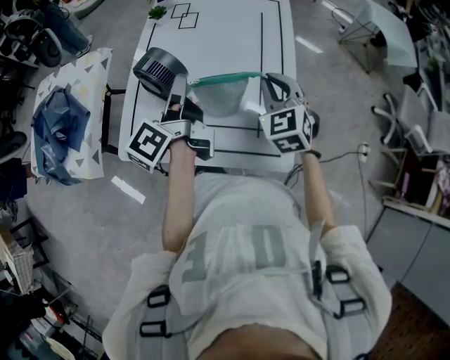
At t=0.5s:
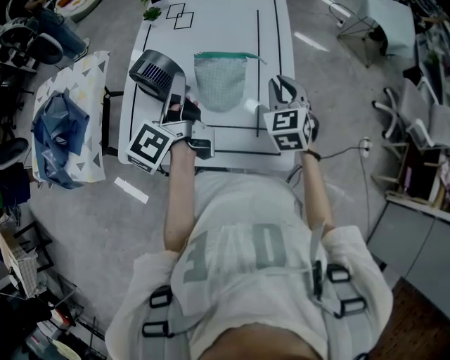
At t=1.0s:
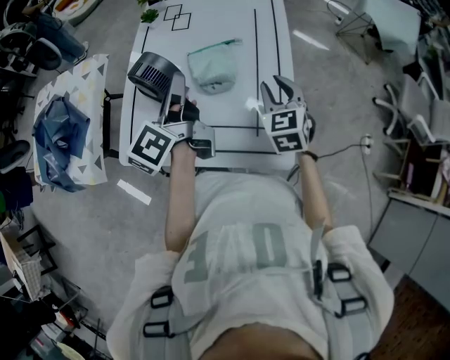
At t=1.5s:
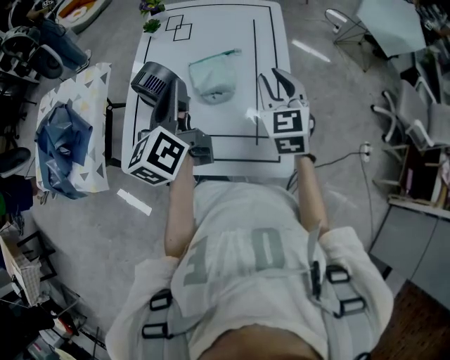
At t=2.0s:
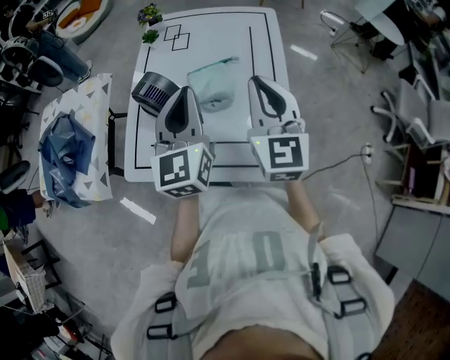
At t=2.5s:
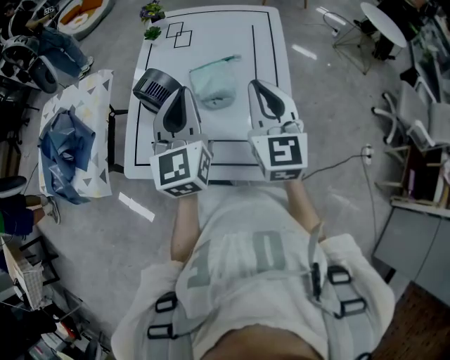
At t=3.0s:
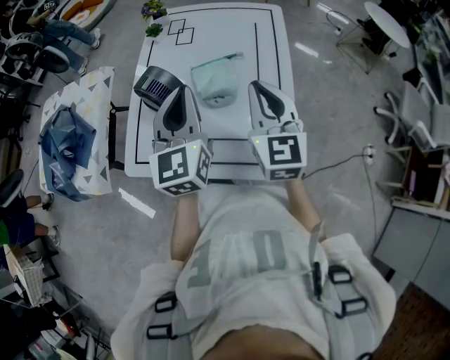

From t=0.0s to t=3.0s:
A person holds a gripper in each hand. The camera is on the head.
From t=0.0s to t=1.5s: The left gripper turns by about 30 degrees.
From t=1.5s to t=3.0s: The left gripper rotates roughly 40 degrees, while the right gripper ends up approximately 5 cm from where it was.

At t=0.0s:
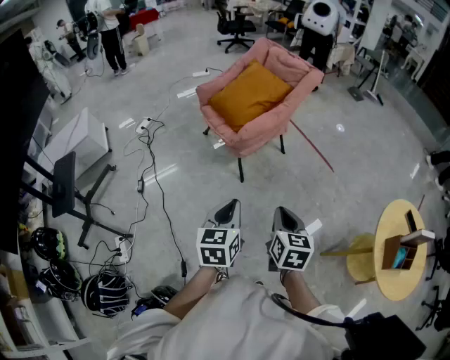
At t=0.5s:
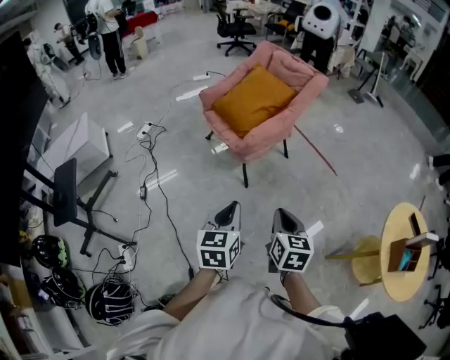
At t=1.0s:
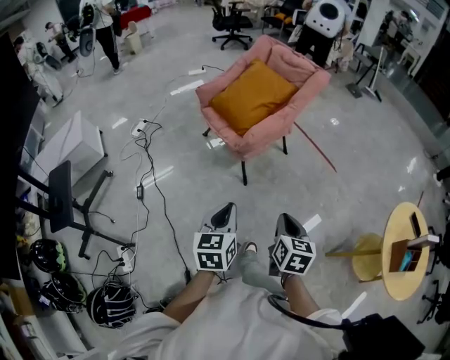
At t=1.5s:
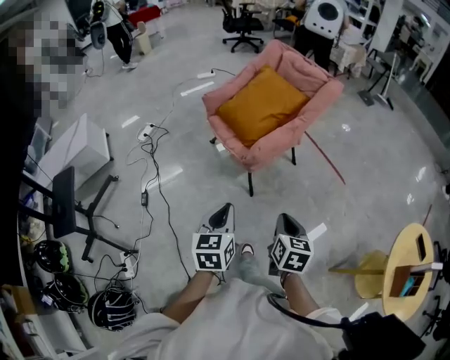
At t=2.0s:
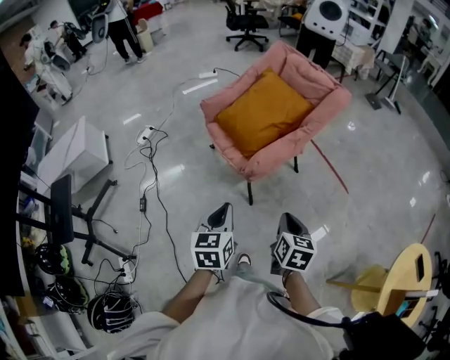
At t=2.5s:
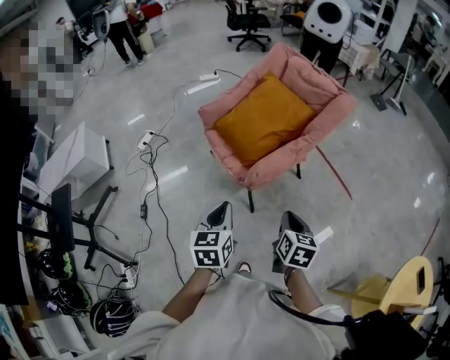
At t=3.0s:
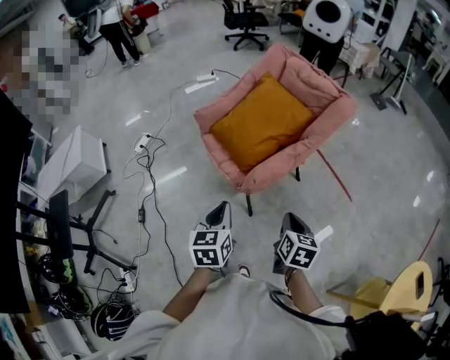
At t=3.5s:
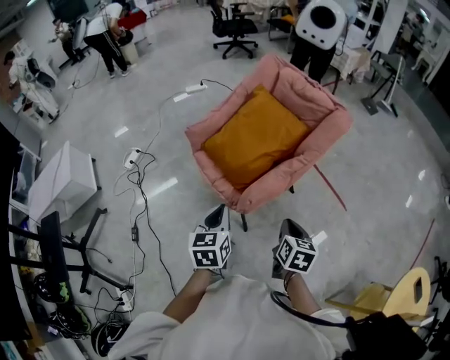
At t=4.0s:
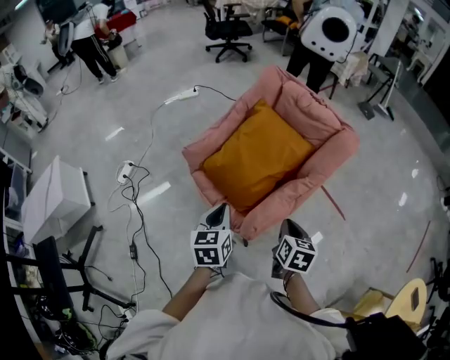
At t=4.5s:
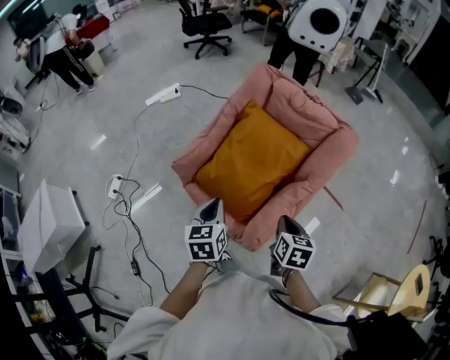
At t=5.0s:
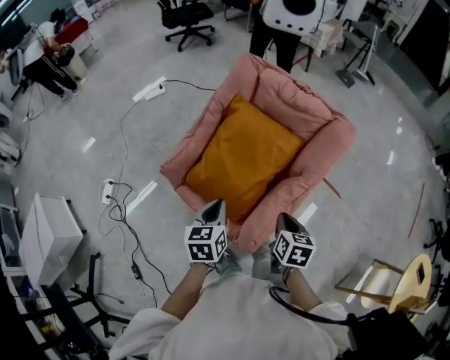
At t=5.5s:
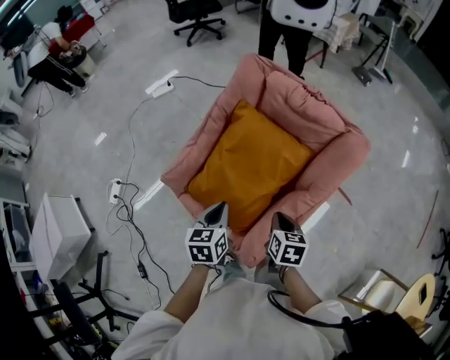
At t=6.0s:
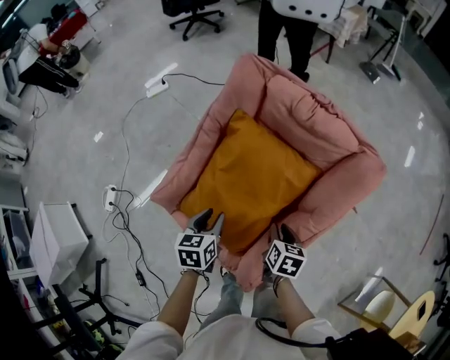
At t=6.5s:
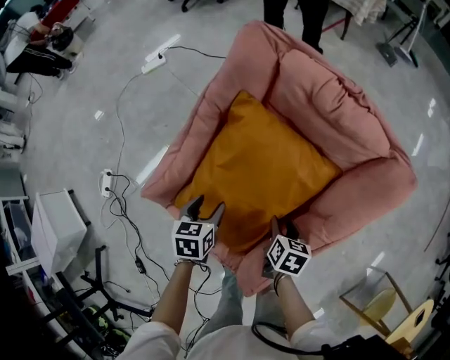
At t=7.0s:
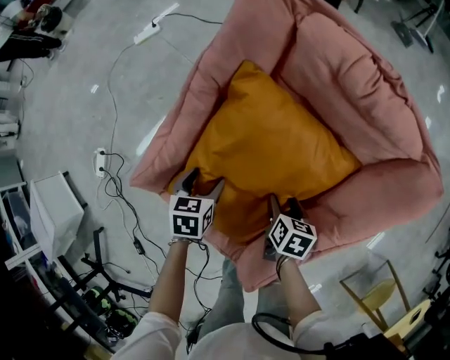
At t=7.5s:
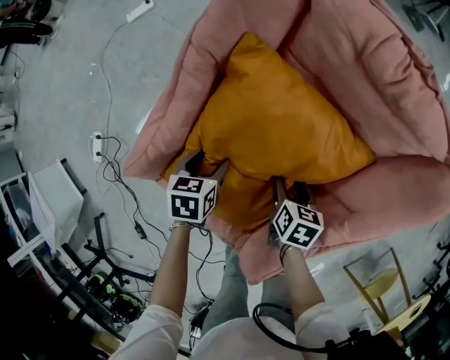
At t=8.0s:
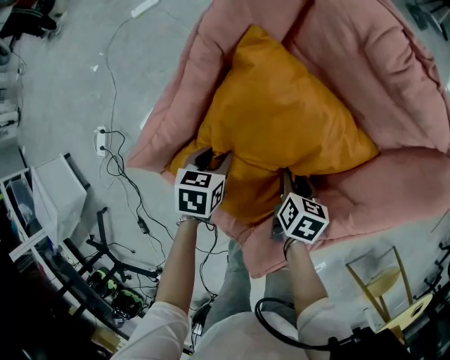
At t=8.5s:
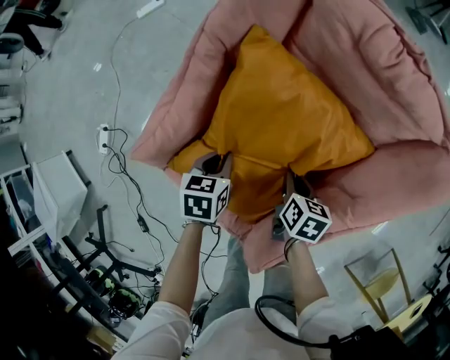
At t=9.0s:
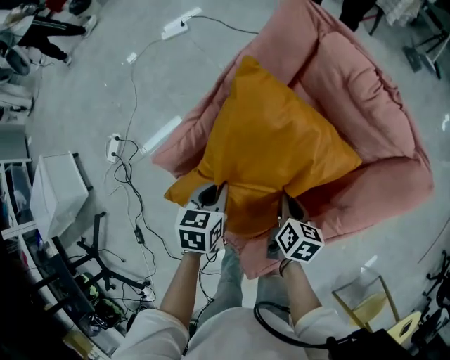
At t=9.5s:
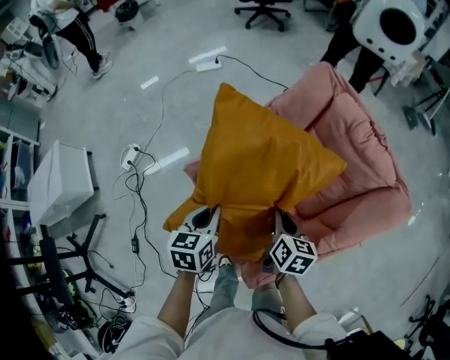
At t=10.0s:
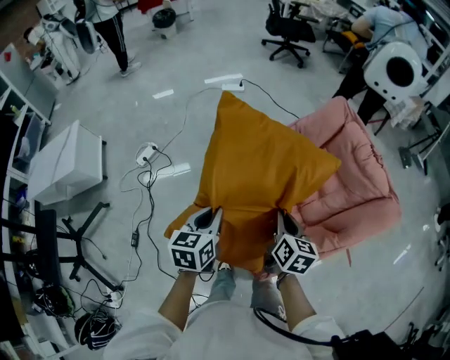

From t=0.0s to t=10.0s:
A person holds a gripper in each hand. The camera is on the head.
From t=0.0s to t=2.0s: Both grippers travel together forward, about 25 cm.
From t=2.0s to t=4.0s: The two grippers go roughly 30 cm forward.
From t=4.0s to t=6.0s: The two grippers go approximately 30 cm forward and downward. The left gripper changes its angle by about 20 degrees, and opens.
From t=6.0s to t=8.0s: Both grippers move downward and forward, roughly 20 cm. The right gripper opens, then closes once more. The left gripper opens, then closes again.
From t=8.0s to t=10.0s: The left gripper travels upward, backward and to the left by some 40 cm, points its fingers about 30 degrees further upward, and closes its fingers, while the right gripper shifts some 35 cm upward and to the left, rotates approximately 40 degrees, and closes up.

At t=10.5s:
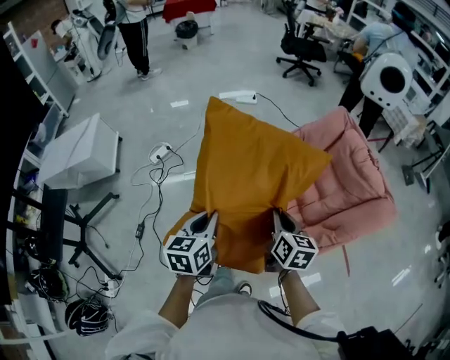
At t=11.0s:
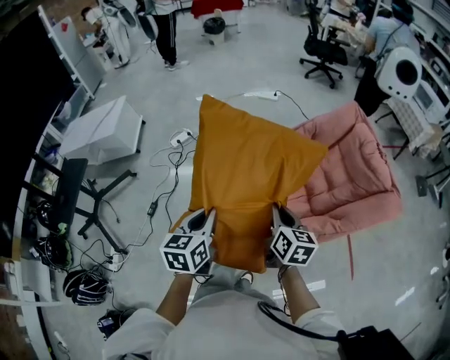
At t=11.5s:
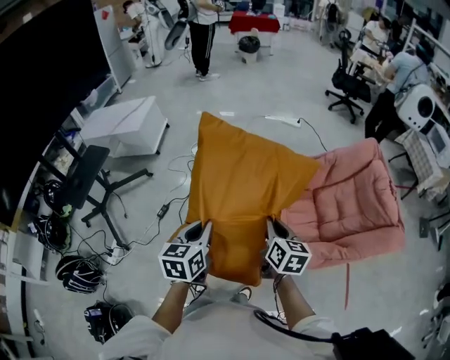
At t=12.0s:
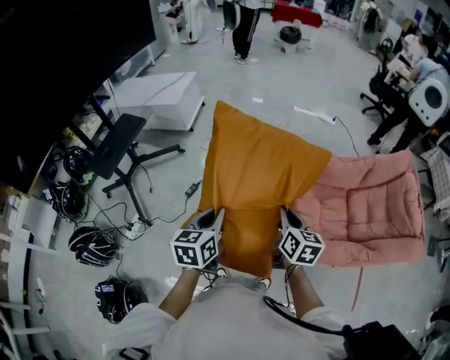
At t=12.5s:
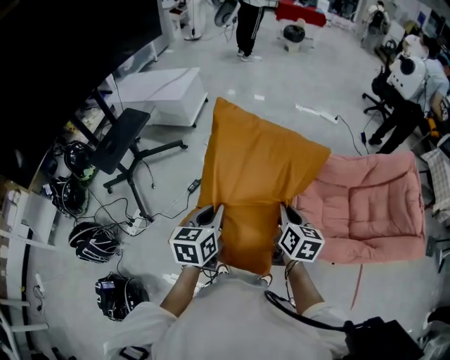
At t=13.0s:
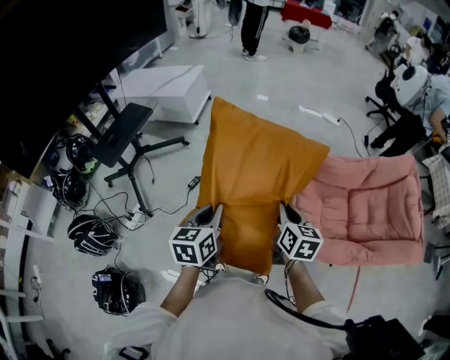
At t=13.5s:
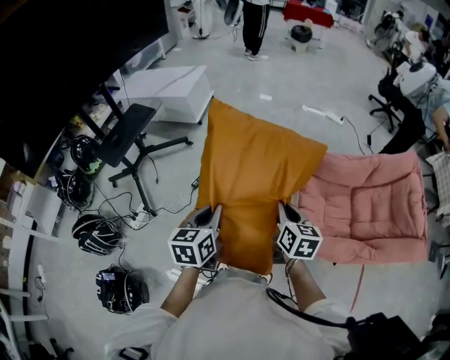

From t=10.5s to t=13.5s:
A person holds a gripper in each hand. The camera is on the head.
From t=10.5s to t=12.0s: The right gripper travels to the left by roughly 25 cm, and swivels about 30 degrees; the left gripper moves to the left and backward, roughly 30 cm, and changes its angle by some 30 degrees.
From t=12.0s to t=13.5s: The grippers stay close to where they were, moving slightly.

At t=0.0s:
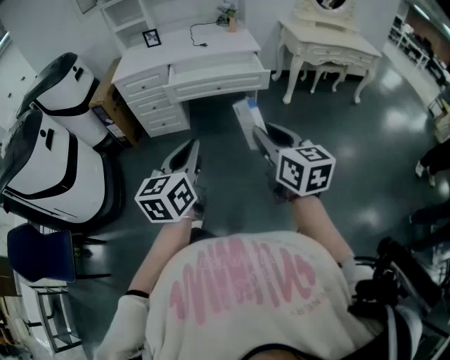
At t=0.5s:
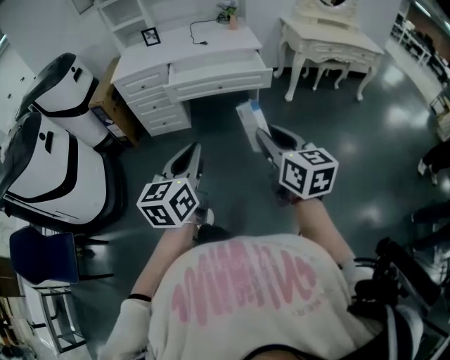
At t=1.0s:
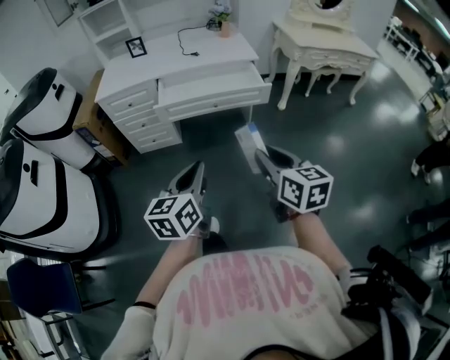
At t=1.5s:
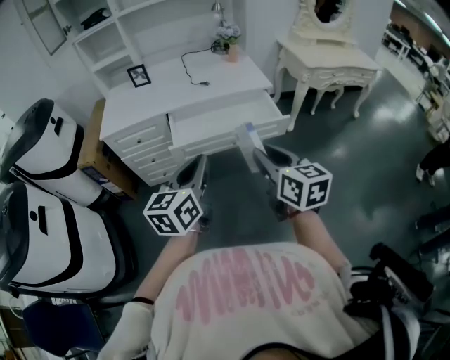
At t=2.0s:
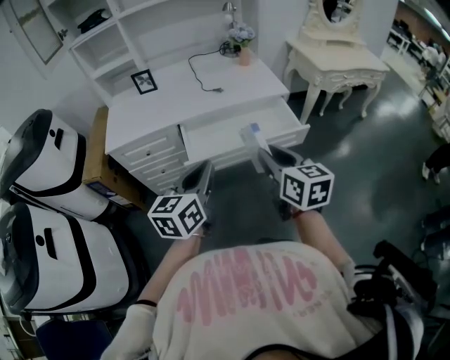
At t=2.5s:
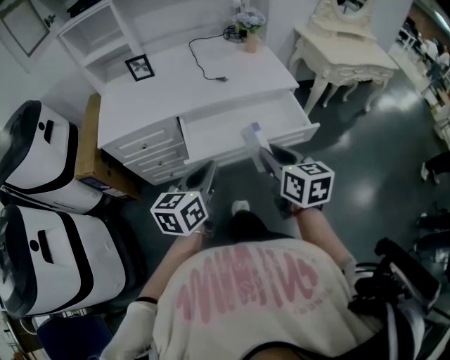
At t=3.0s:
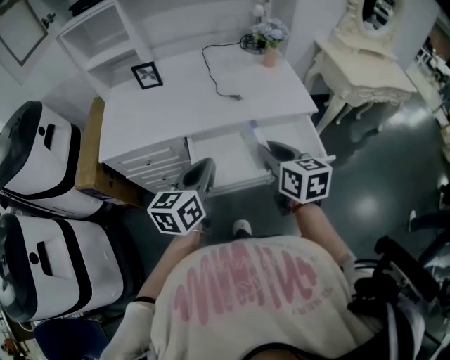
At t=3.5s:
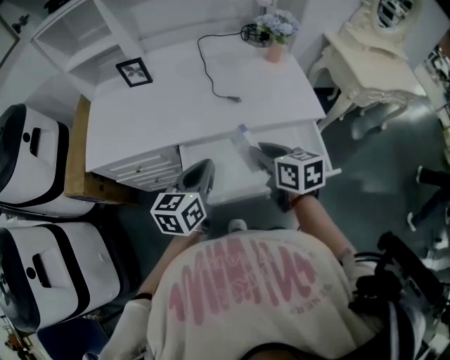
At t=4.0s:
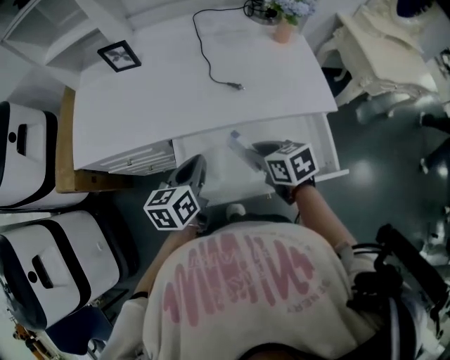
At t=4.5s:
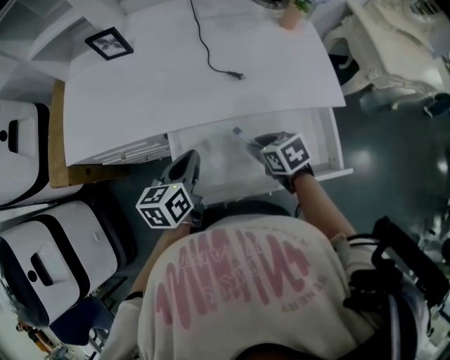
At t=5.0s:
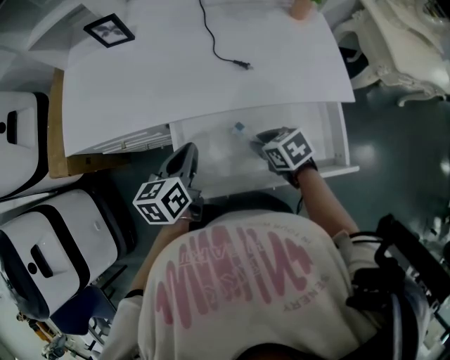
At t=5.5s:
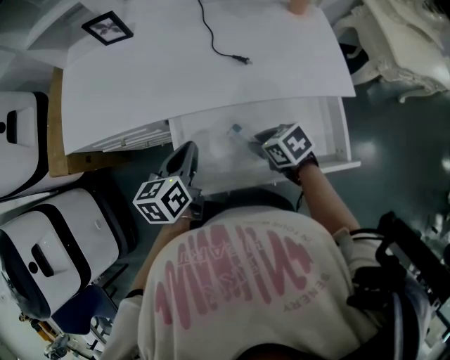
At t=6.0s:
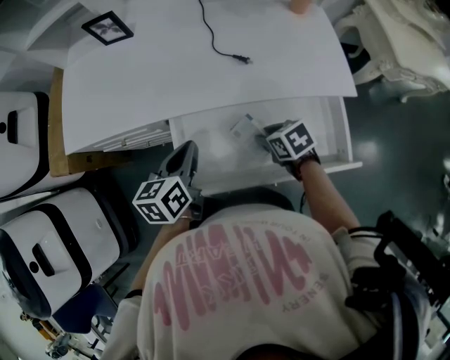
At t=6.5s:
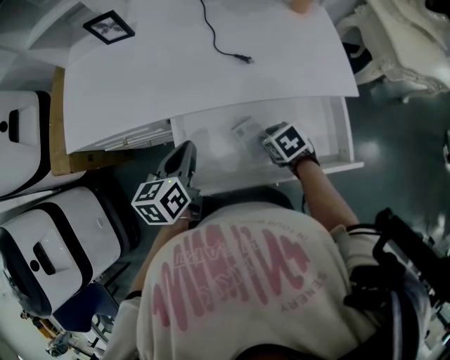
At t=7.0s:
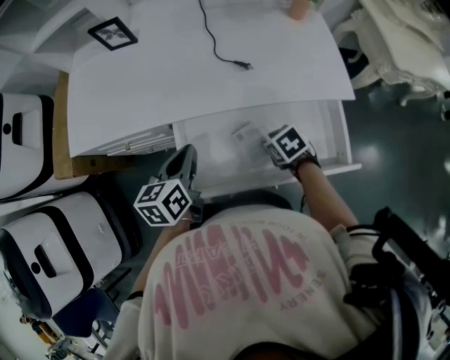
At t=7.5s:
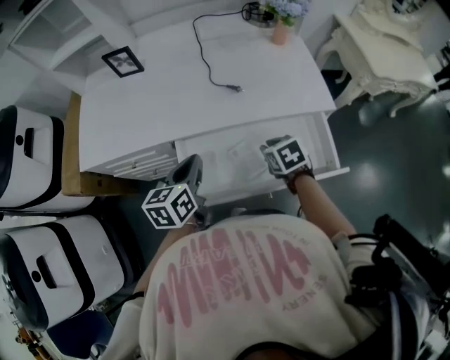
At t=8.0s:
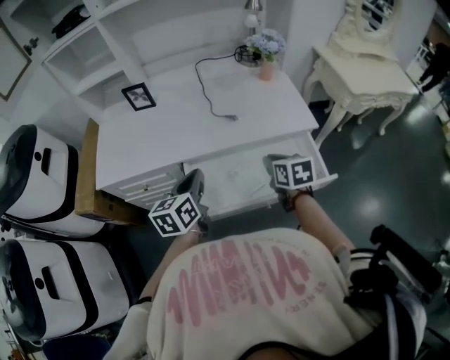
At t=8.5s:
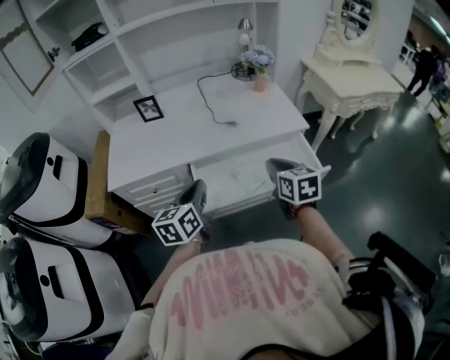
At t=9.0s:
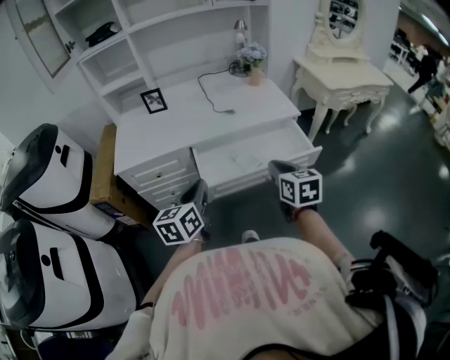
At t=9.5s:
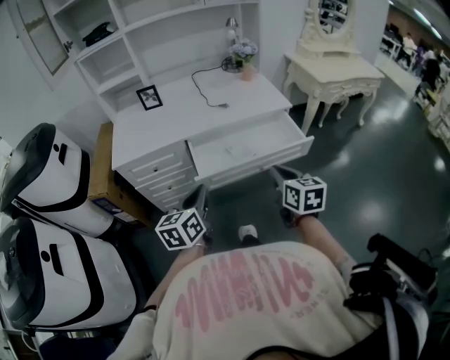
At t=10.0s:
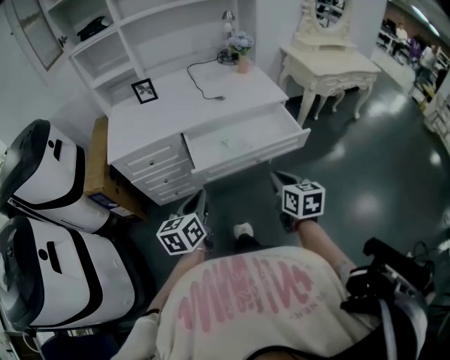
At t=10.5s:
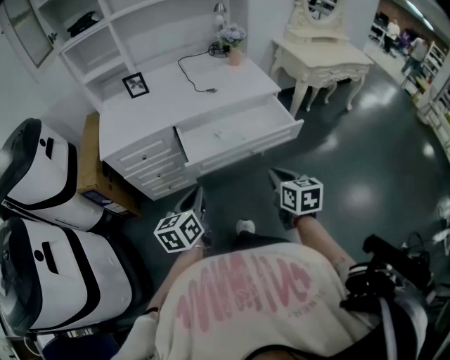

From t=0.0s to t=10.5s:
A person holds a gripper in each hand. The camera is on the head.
From t=0.0s to t=2.0s: The two grippers travel together, forward, approximately 40 cm.
From t=2.0s to t=4.0s: The two grippers go some 35 cm forward and downward. The right gripper swivels about 40 degrees, while the left gripper turns by roughly 20 degrees.
From t=4.0s to t=6.5s: The right gripper heads downward, covering roughly 15 cm, and turns by approximately 30 degrees.
From t=6.5s to t=8.5s: The left gripper shifts about 15 cm upward, while the right gripper travels upward by approximately 25 cm, tips its fingers upward by about 40 degrees, and closes.
From t=8.5s to t=10.5s: Both grippers travel together backward, some 20 cm.
